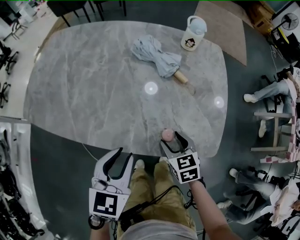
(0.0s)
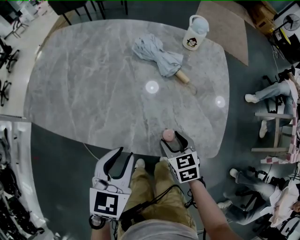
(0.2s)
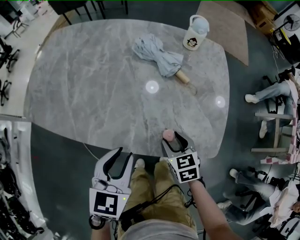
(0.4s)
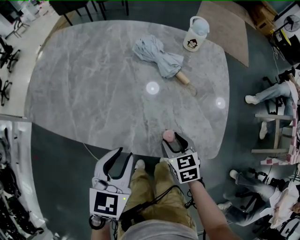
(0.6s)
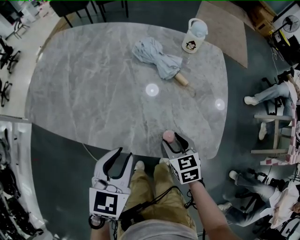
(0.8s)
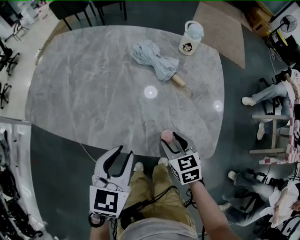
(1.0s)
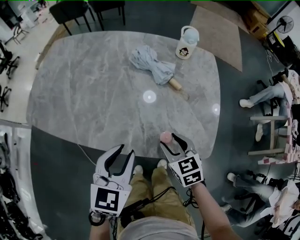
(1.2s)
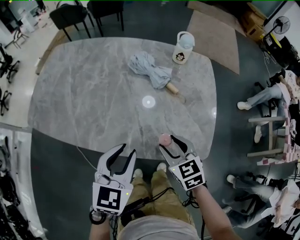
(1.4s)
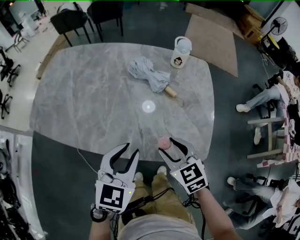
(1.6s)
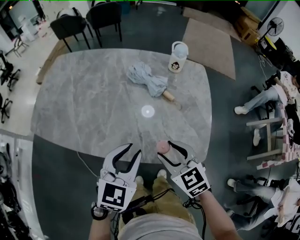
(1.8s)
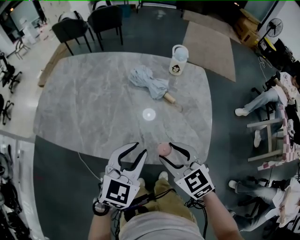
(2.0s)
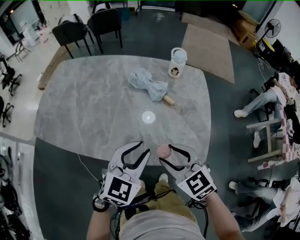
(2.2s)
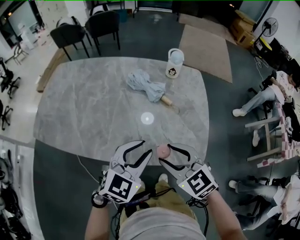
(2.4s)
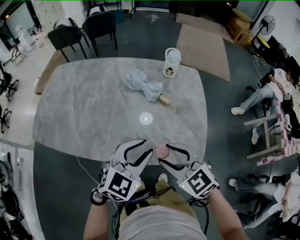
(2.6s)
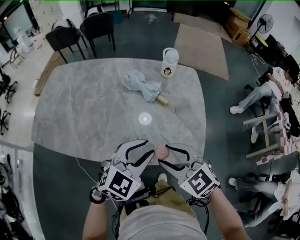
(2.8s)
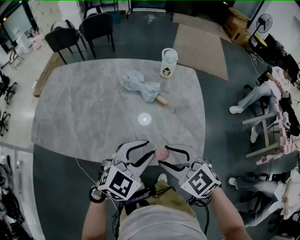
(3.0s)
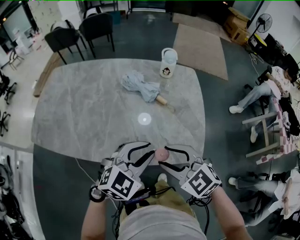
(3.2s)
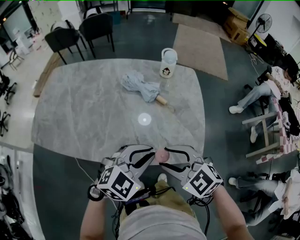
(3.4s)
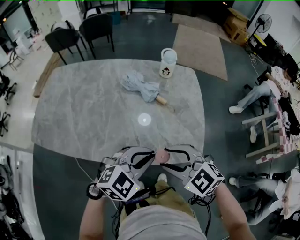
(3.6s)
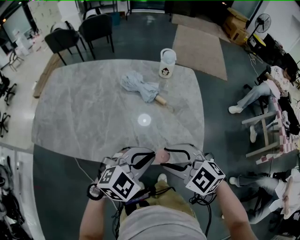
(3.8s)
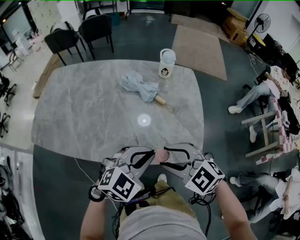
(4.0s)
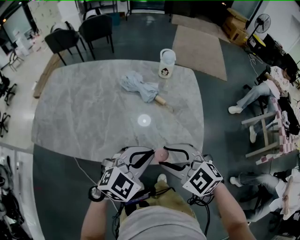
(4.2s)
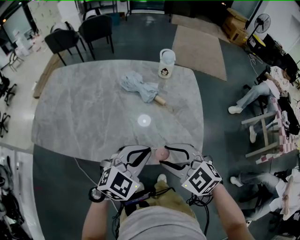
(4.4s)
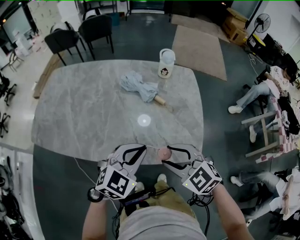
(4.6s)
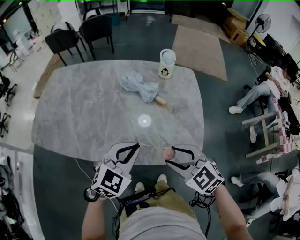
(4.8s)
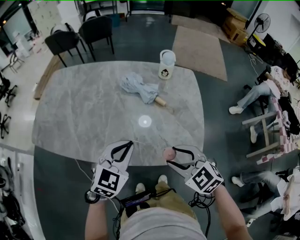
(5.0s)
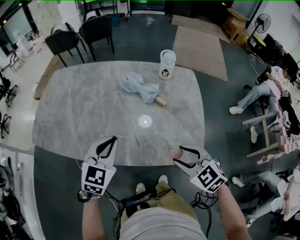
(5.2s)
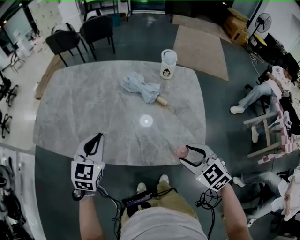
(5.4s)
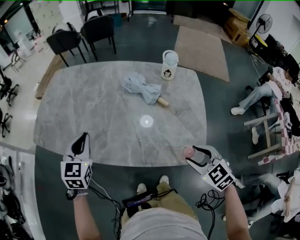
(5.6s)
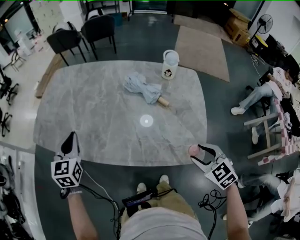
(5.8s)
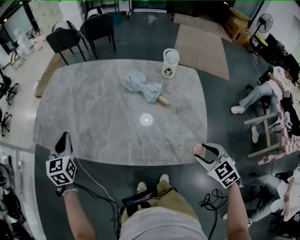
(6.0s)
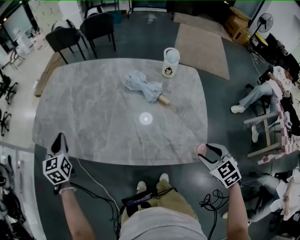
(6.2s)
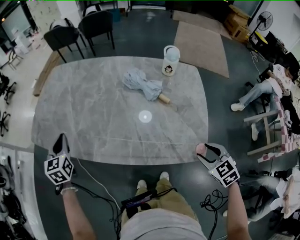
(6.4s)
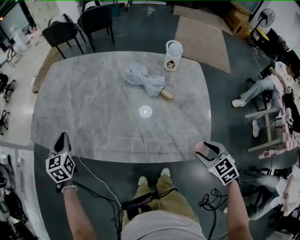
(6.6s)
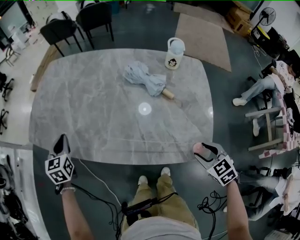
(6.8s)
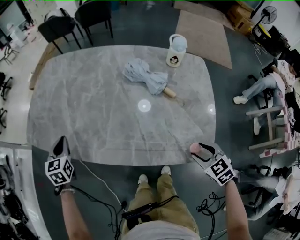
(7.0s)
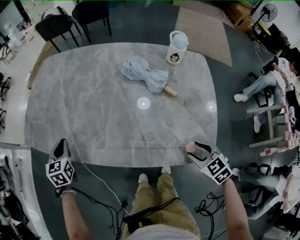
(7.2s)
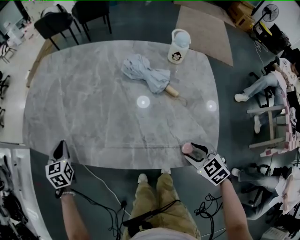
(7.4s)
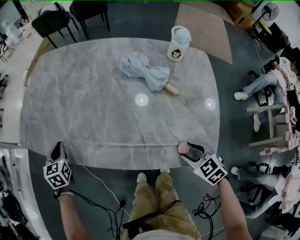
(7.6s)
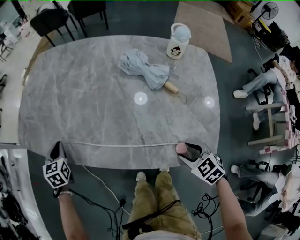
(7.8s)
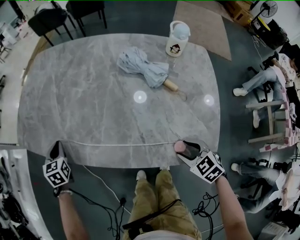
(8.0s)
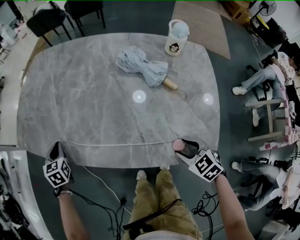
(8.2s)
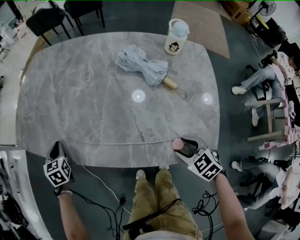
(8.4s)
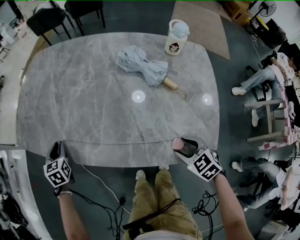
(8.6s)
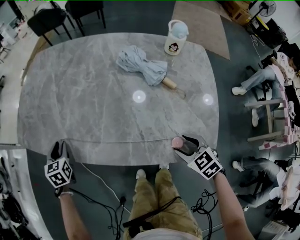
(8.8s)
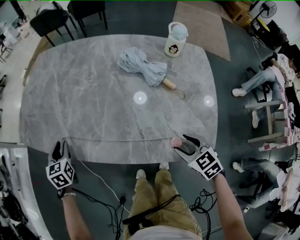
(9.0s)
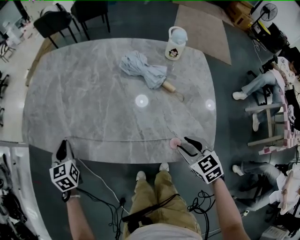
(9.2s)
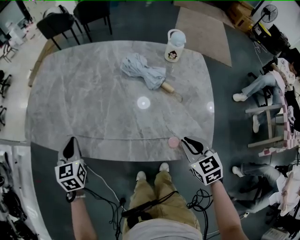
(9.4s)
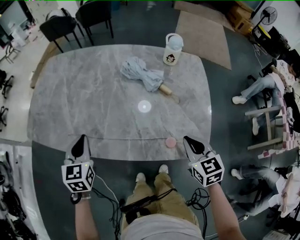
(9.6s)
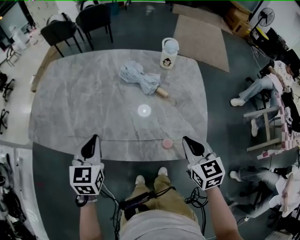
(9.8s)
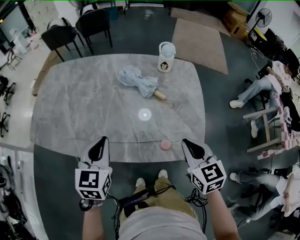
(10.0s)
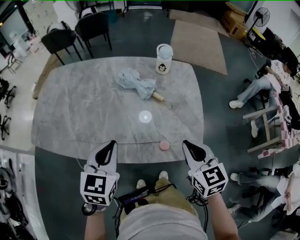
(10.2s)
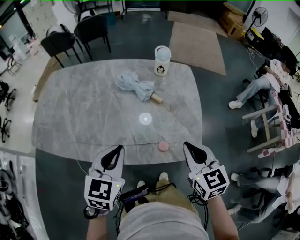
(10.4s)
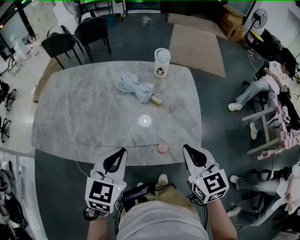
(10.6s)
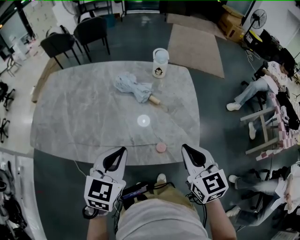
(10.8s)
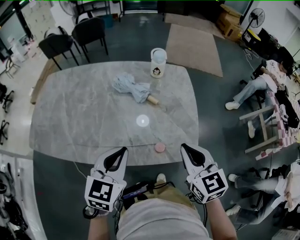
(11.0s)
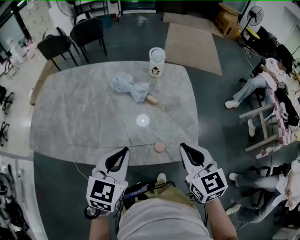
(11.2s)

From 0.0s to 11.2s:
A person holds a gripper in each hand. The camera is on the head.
From 0.0s to 1.6s: The right gripper heads upward, covering about 10 cm. Meanwhile the left gripper changes place by some 5 cm.
From 1.6s to 3.2s: The left gripper travels to the right by about 5 cm, and rotates about 30 degrees, while the right gripper goes roughly 5 cm upward, and swivels approximately 20 degrees.
From 3.2s to 4.8s: The grippers move only a little.
From 4.8s to 6.4s: The right gripper travels to the right and downward by some 15 cm, and turns by some 20 degrees; the left gripper shifts some 35 cm to the left and forward, and swivels approximately 60 degrees.
From 6.4s to 8.0s: The left gripper travels downward by approximately 15 cm. The right gripper is displaced downward, to the left and forward by approximately 15 cm.
From 8.0s to 9.6s: The right gripper is displaced upward by some 10 cm, rotates about 30 degrees, and closes. The left gripper moves to the right, upward and backward, some 20 cm, and opens, then closes again.
From 9.6s to 11.2s: The right gripper moves upward, some 10 cm; the left gripper travels to the right and upward by about 25 cm, and swivels roughly 30 degrees.

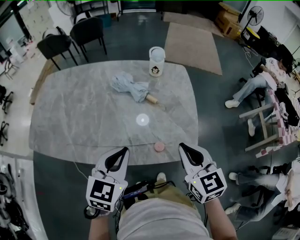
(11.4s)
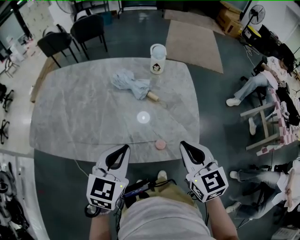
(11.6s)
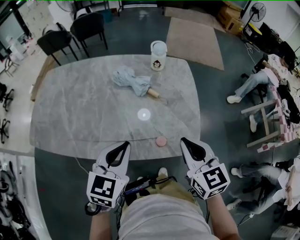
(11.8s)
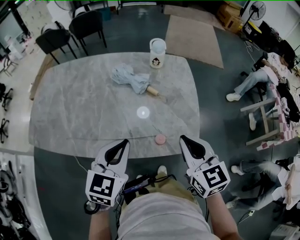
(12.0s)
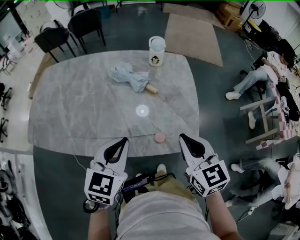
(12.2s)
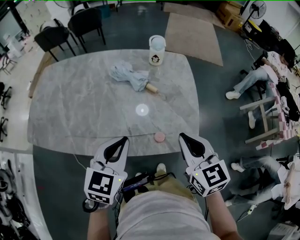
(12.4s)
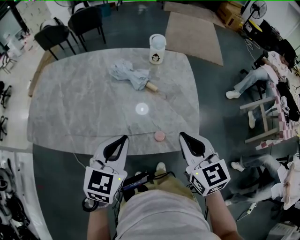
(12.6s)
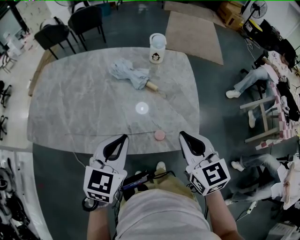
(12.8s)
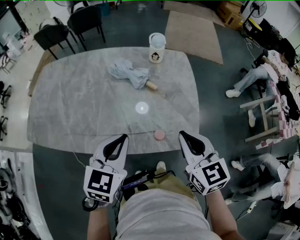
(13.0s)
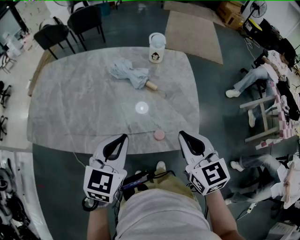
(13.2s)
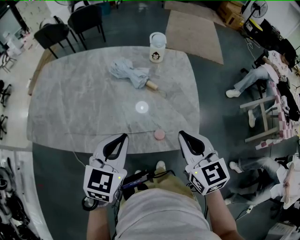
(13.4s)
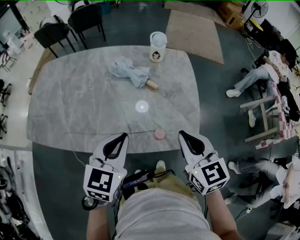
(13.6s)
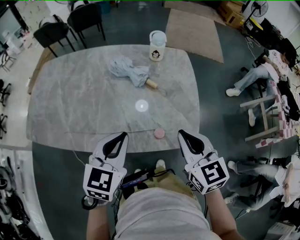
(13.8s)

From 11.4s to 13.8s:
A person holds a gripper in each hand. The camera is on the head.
From 11.4s to 13.8s: Both grippers stay about where they are.

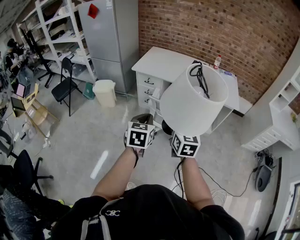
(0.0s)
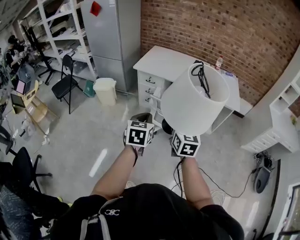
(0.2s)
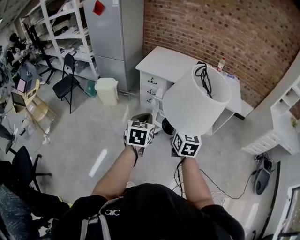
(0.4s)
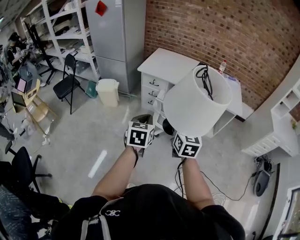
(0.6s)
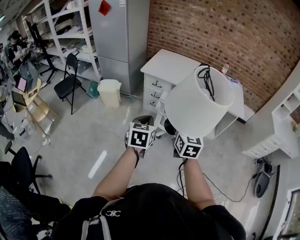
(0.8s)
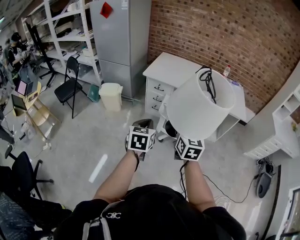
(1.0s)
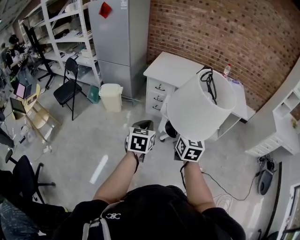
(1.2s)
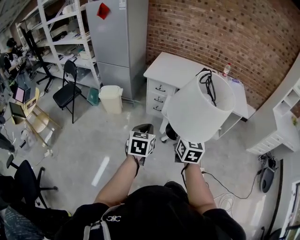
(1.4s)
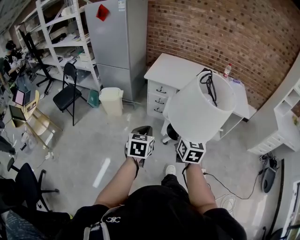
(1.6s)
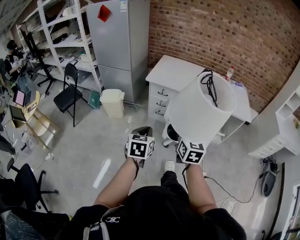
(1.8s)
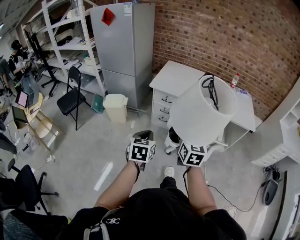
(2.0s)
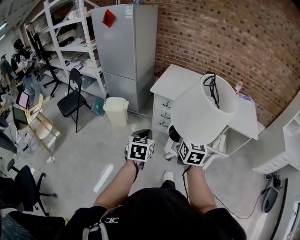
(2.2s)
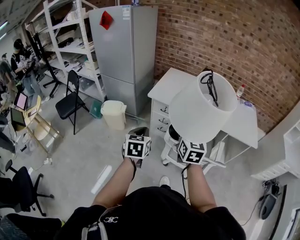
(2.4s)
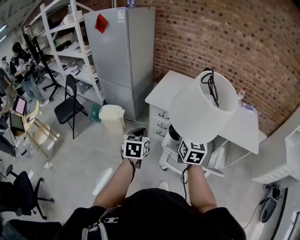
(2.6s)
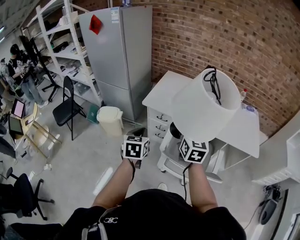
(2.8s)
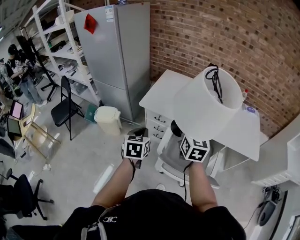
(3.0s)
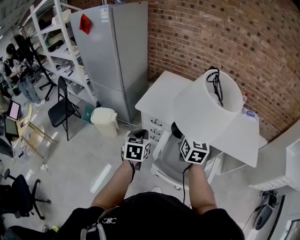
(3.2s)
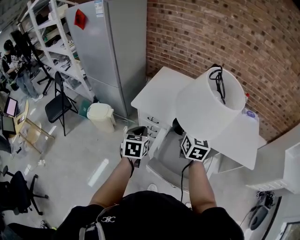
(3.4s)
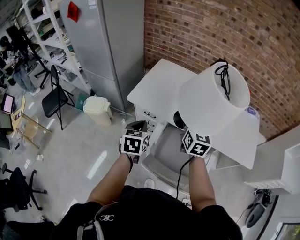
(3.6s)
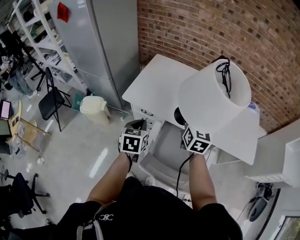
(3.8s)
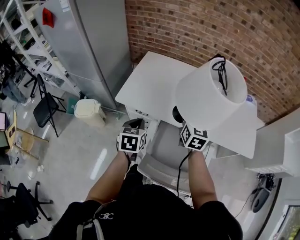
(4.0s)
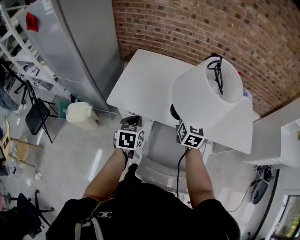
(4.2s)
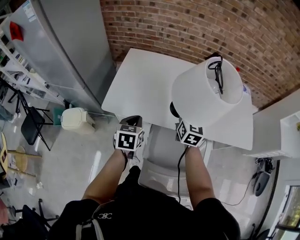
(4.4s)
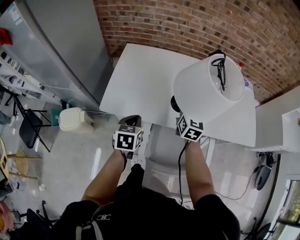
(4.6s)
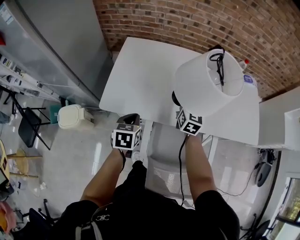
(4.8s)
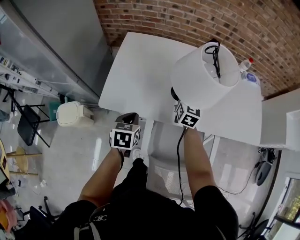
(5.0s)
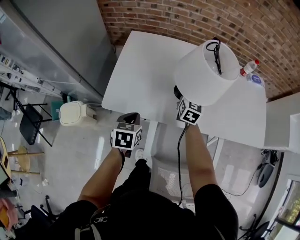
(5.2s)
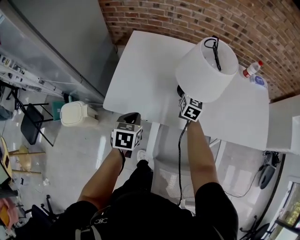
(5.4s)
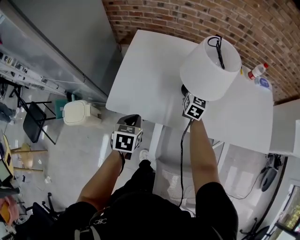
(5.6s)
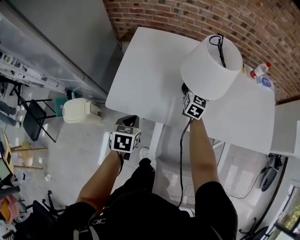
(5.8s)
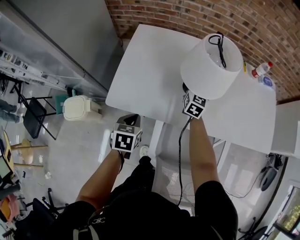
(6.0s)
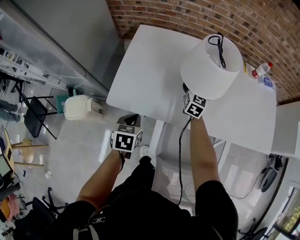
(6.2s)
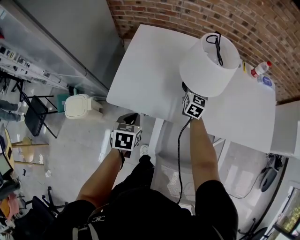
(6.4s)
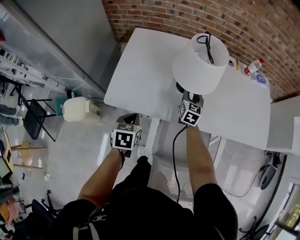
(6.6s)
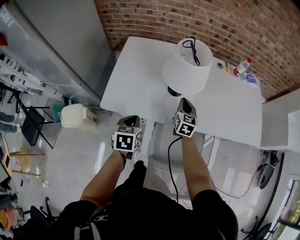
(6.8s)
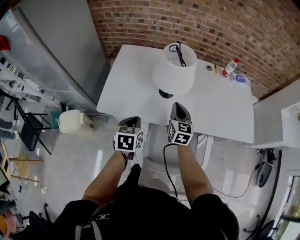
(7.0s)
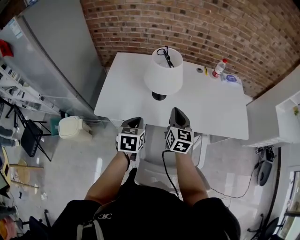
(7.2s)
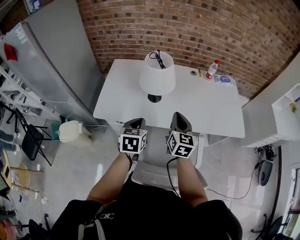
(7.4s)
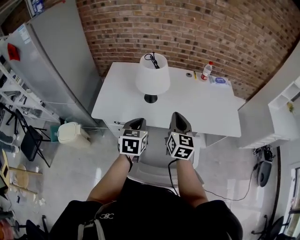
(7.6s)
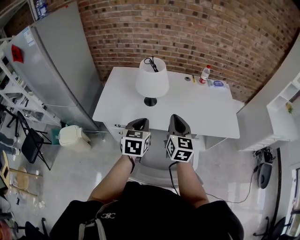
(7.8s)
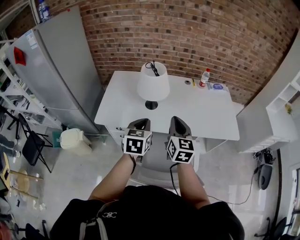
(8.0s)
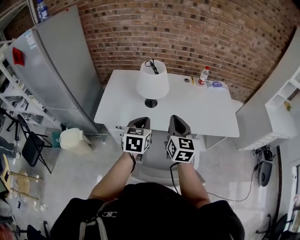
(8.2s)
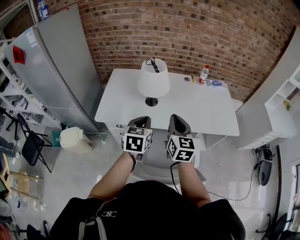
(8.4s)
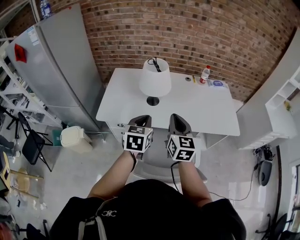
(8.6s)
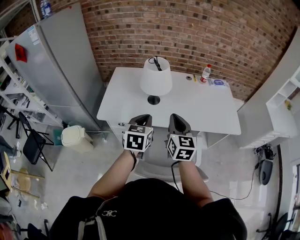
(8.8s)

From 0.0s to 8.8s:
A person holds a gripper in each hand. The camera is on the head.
From 0.0s to 1.4s: Both grippers move to the left, approximately 15 cm.
From 1.4s to 3.0s: The two grippers go approximately 35 cm forward.
From 3.0s to 4.4s: The left gripper moves forward, roughly 25 cm. The right gripper shifts about 30 cm forward, to the right and downward.
From 4.4s to 5.8s: The left gripper shifts about 15 cm downward and to the left, while the right gripper travels forward and downward by roughly 25 cm.
From 5.8s to 7.4s: The right gripper is displaced backward, upward and to the right by about 35 cm, and closes up, while the left gripper goes roughly 25 cm to the right and upward.
From 7.4s to 8.8s: The left gripper heads upward, covering about 10 cm. Meanwhile the right gripper travels backward and upward by about 10 cm.

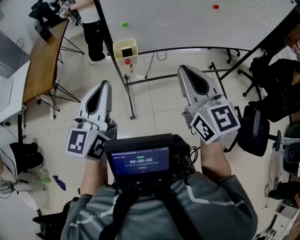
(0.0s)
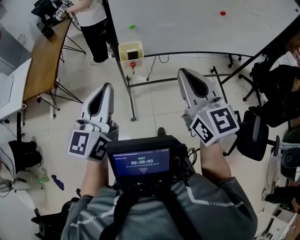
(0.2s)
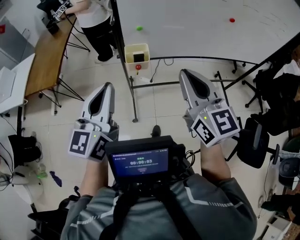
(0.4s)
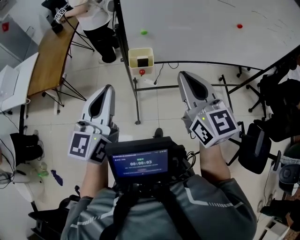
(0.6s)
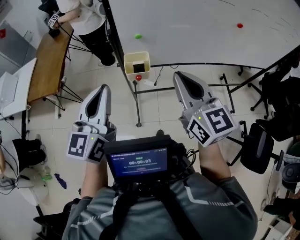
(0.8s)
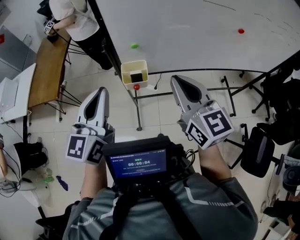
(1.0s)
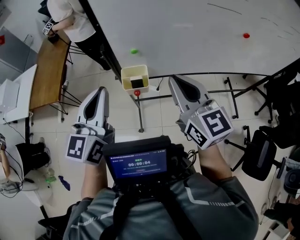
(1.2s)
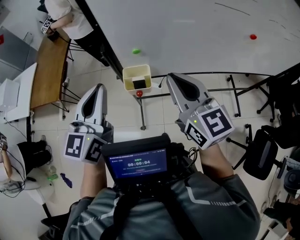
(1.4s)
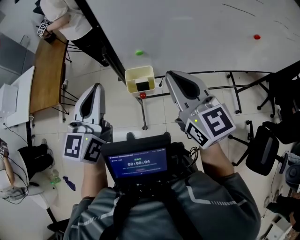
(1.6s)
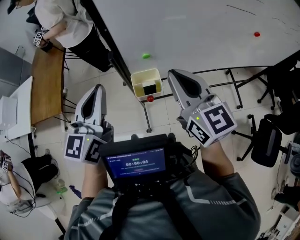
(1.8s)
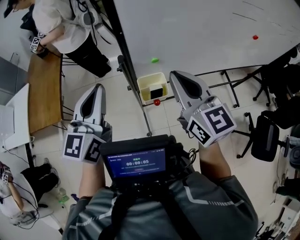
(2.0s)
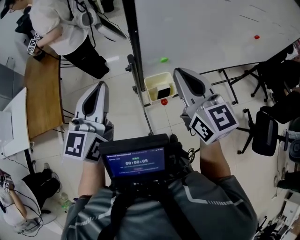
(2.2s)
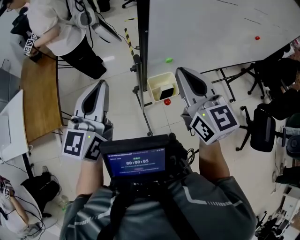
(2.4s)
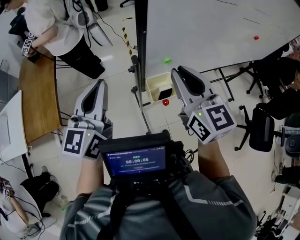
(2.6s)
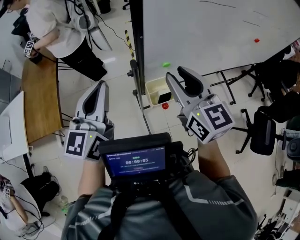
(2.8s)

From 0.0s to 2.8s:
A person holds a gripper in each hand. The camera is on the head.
From 0.0s to 1.4s: The two grippers go approximately 25 cm forward.
From 1.4s to 2.8s: Both grippers travel together to the left and forward, roughly 20 cm. The right gripper opens.
